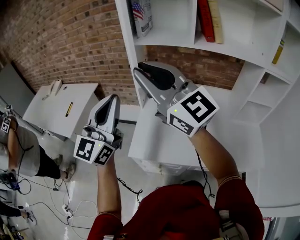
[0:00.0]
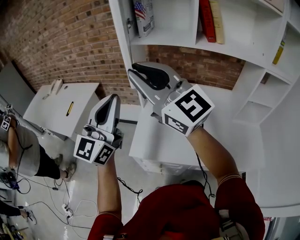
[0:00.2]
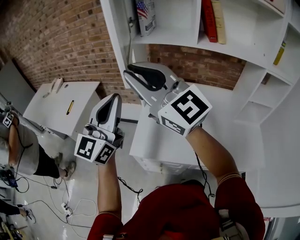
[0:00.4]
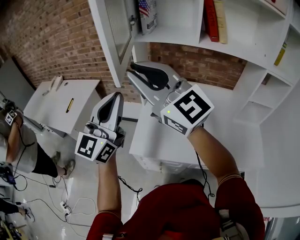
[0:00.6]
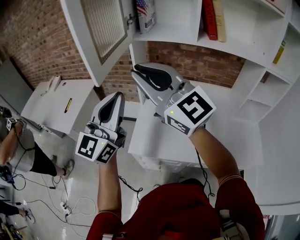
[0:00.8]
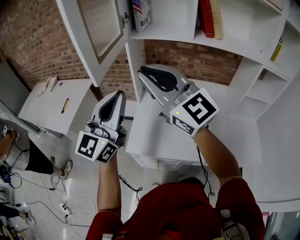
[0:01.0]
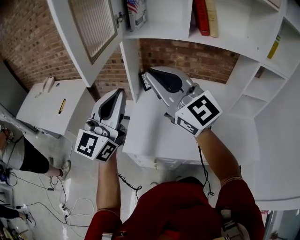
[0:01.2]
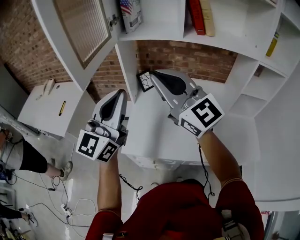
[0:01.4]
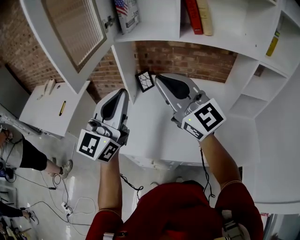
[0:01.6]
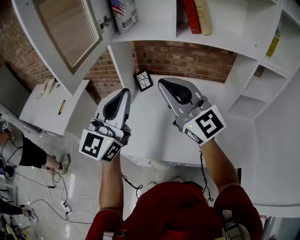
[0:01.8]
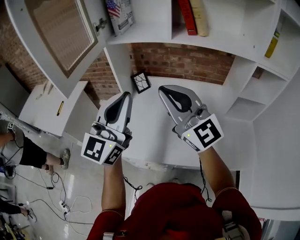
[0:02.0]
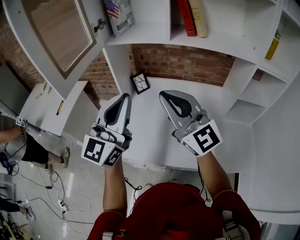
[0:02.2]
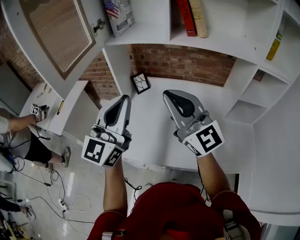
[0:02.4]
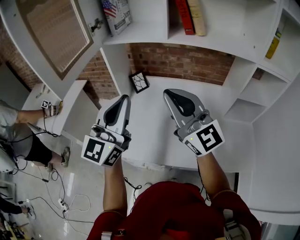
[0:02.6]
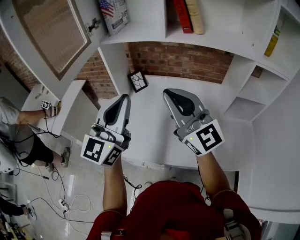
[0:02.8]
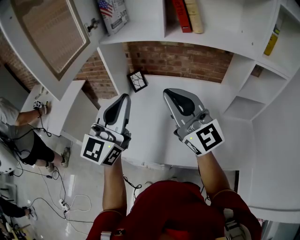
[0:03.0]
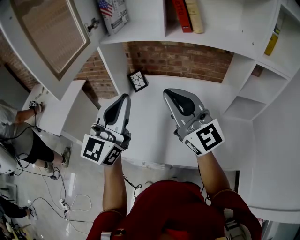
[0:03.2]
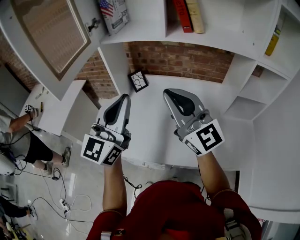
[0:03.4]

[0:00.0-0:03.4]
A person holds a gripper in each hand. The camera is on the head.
0:00.0 to 0:01.6: The left gripper travels to the right by approximately 10 cm. Meanwhile the right gripper is displaced to the right and downward by some 10 cm.
0:01.6 to 0:03.4: The two grippers go roughly 5 cm to the right.

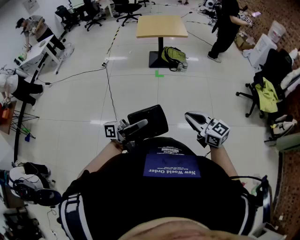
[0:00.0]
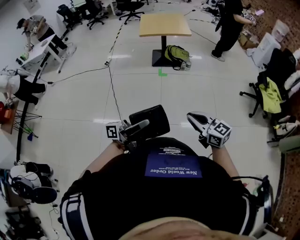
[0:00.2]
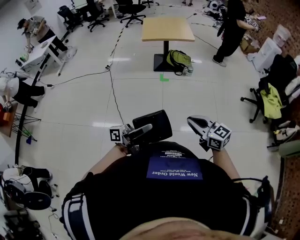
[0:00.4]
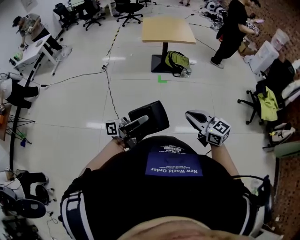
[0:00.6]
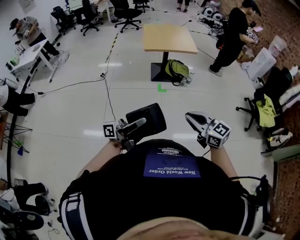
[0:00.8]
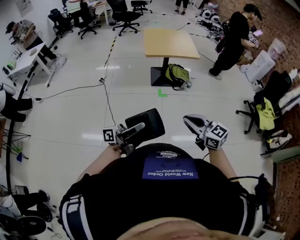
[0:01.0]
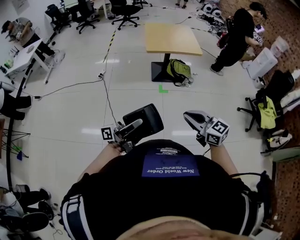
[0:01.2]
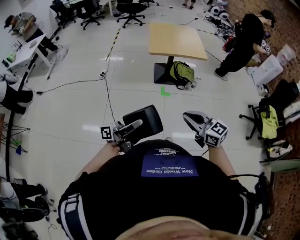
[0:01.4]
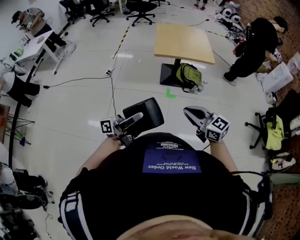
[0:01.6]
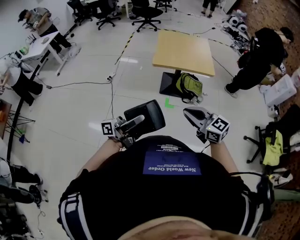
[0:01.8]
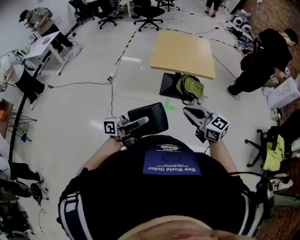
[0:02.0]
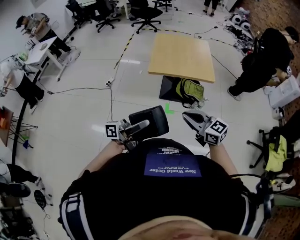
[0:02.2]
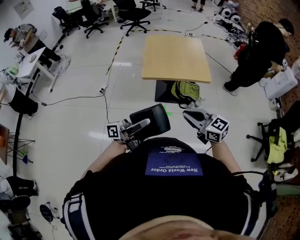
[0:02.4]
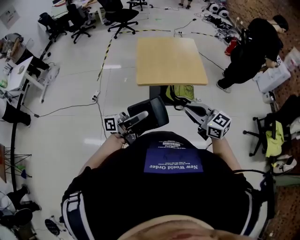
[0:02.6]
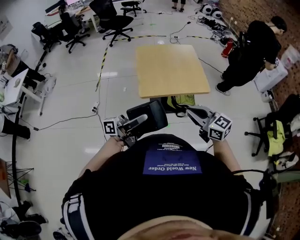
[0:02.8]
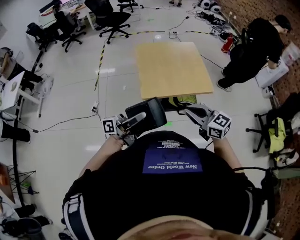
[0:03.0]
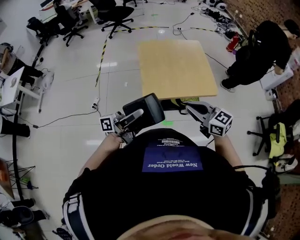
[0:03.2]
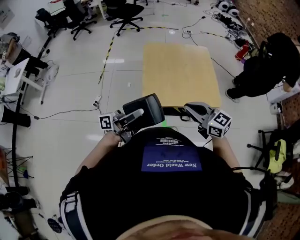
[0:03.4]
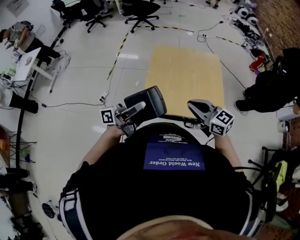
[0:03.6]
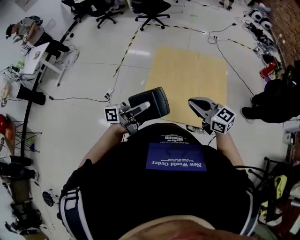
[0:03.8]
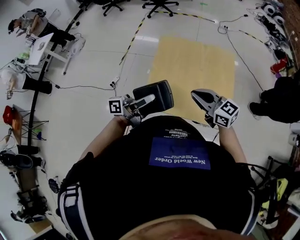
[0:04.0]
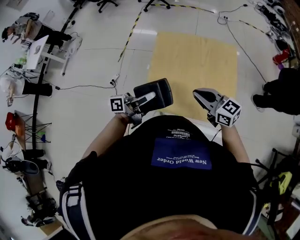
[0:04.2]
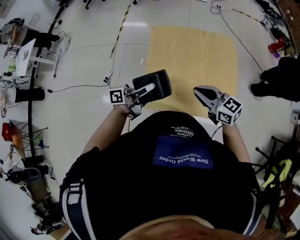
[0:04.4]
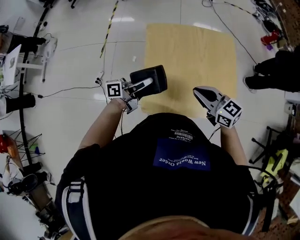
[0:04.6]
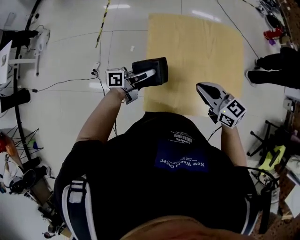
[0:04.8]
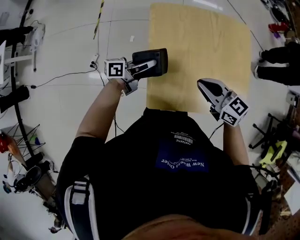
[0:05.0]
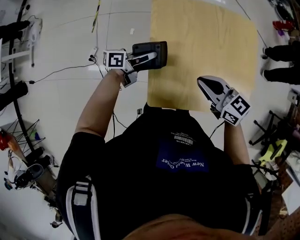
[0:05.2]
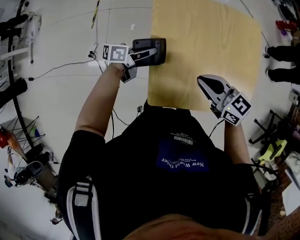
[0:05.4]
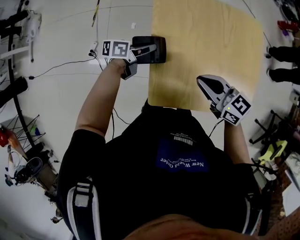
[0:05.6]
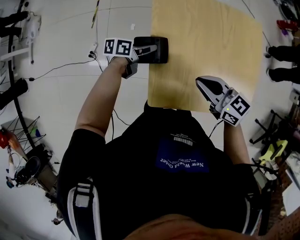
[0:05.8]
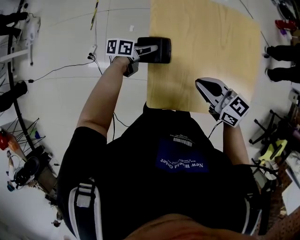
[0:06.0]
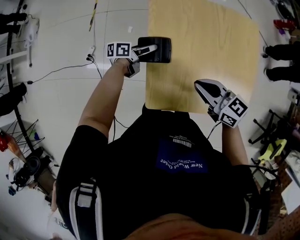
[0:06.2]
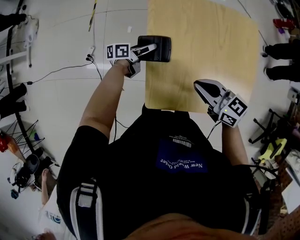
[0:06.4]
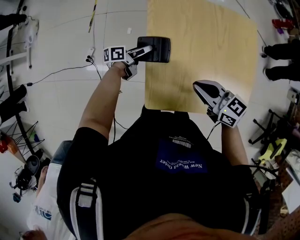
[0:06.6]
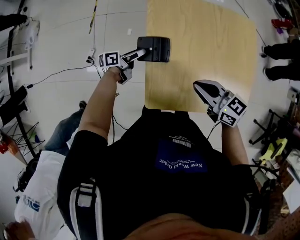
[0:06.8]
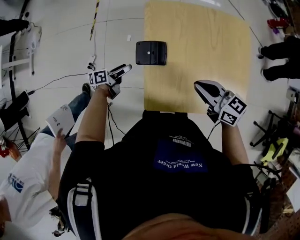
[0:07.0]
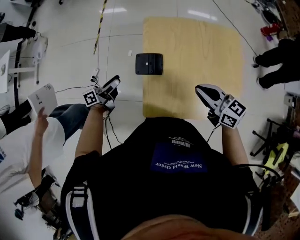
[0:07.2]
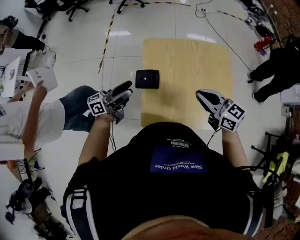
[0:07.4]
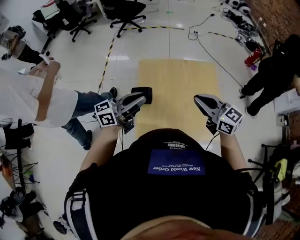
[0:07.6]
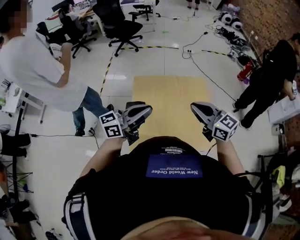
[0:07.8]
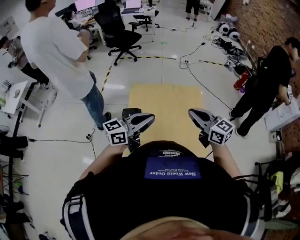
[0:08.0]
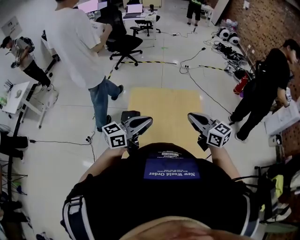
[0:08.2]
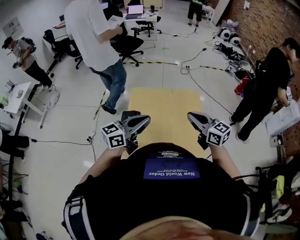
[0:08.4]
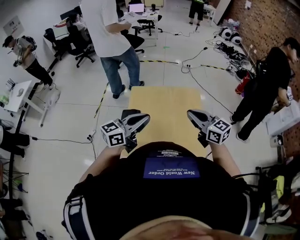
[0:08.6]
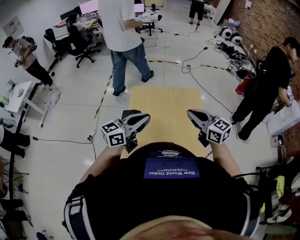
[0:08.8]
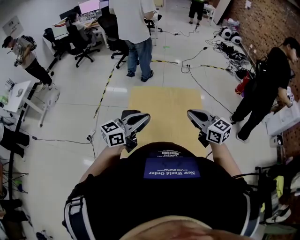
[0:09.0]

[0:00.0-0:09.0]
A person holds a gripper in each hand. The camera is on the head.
0:00.0 to 0:01.6: The pair of grippers is taken forward and to the left, approximately 50 cm.
0:01.6 to 0:03.0: The pair of grippers is taken forward, approximately 40 cm.
0:03.0 to 0:04.4: Both grippers move forward, roughly 35 cm. The left gripper turns by about 30 degrees.
0:04.4 to 0:06.0: The right gripper changes place by approximately 15 cm, while the left gripper is displaced downward by approximately 25 cm, tips its fingers downward by roughly 40 degrees, and opens.
0:06.0 to 0:07.6: The left gripper goes approximately 35 cm upward, tips its fingers upward by roughly 40 degrees, and closes its fingers. Meanwhile the right gripper heads upward, covering about 20 cm, and rotates about 20 degrees.
0:07.6 to 0:09.0: The left gripper heads to the right and backward, covering about 15 cm, while the right gripper is displaced to the right by some 10 cm.

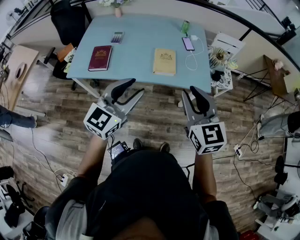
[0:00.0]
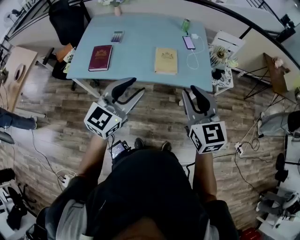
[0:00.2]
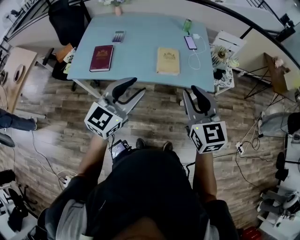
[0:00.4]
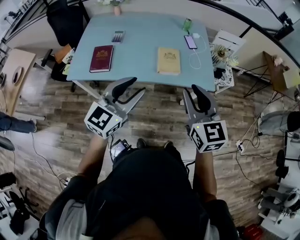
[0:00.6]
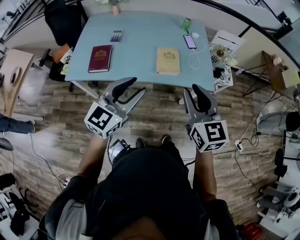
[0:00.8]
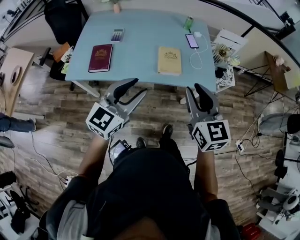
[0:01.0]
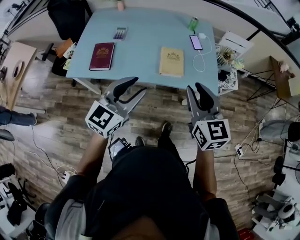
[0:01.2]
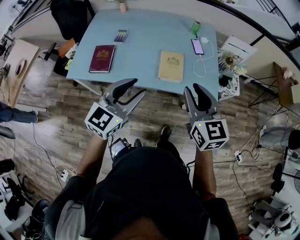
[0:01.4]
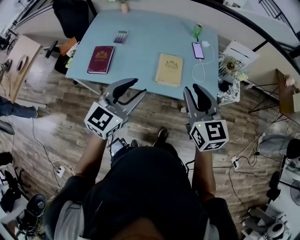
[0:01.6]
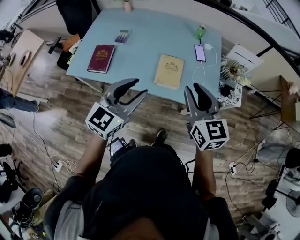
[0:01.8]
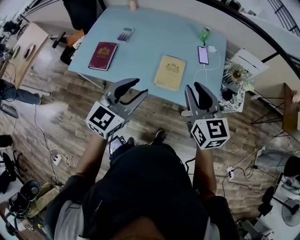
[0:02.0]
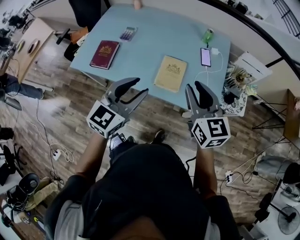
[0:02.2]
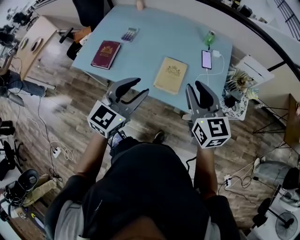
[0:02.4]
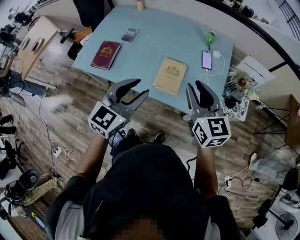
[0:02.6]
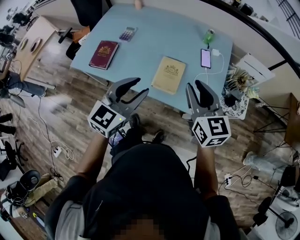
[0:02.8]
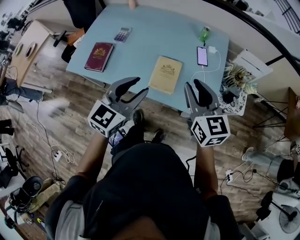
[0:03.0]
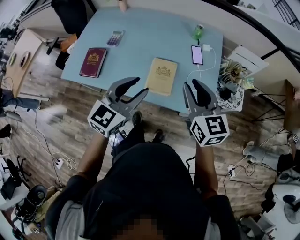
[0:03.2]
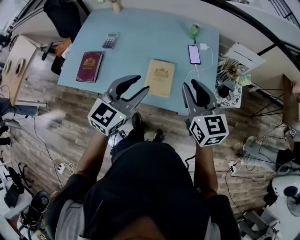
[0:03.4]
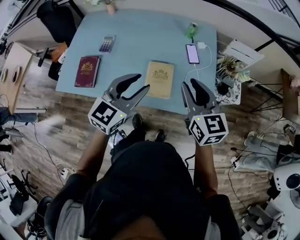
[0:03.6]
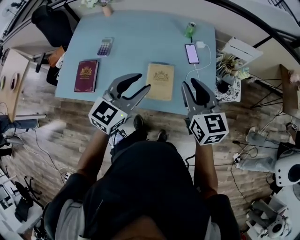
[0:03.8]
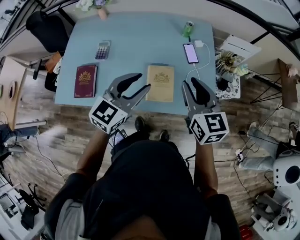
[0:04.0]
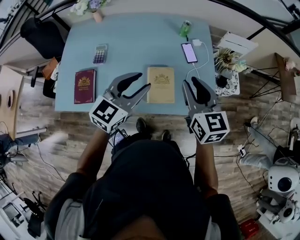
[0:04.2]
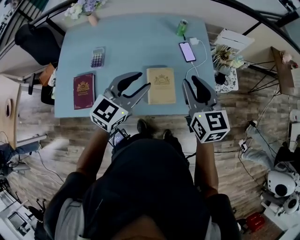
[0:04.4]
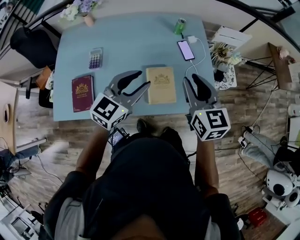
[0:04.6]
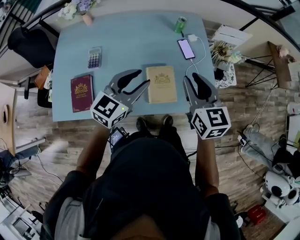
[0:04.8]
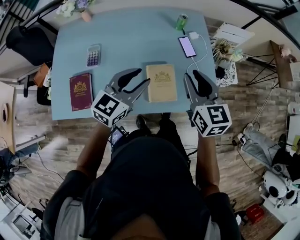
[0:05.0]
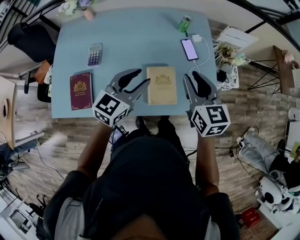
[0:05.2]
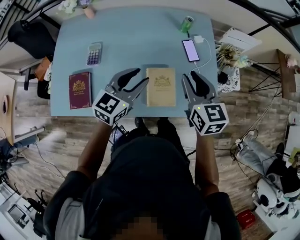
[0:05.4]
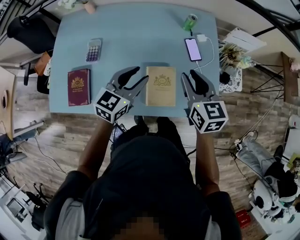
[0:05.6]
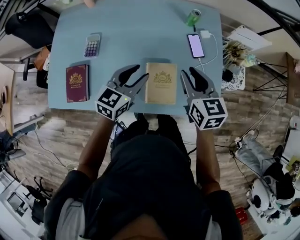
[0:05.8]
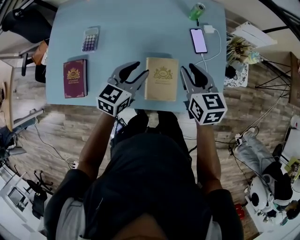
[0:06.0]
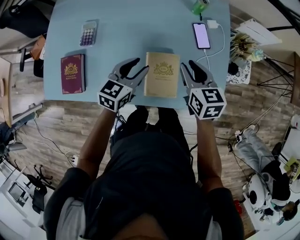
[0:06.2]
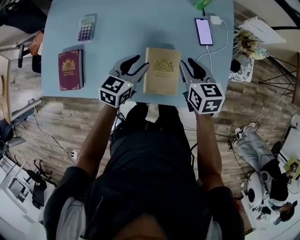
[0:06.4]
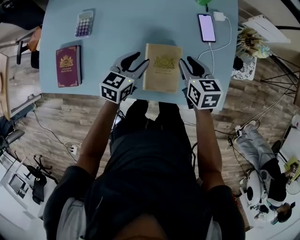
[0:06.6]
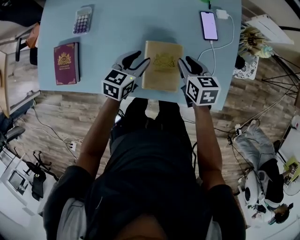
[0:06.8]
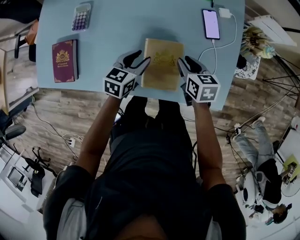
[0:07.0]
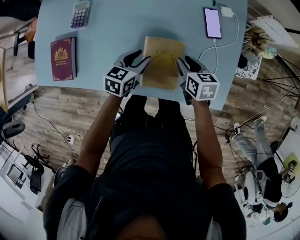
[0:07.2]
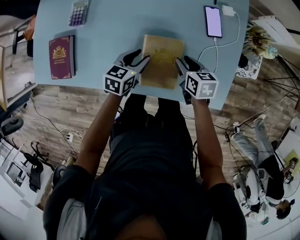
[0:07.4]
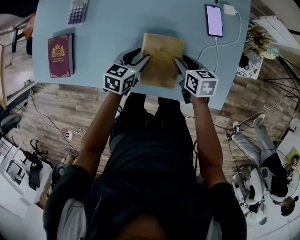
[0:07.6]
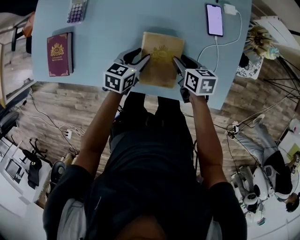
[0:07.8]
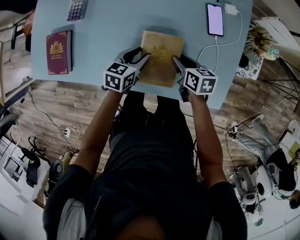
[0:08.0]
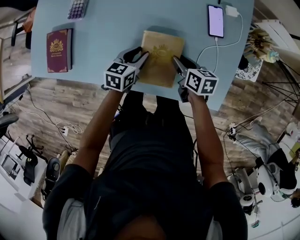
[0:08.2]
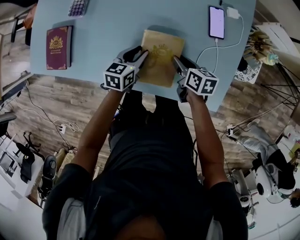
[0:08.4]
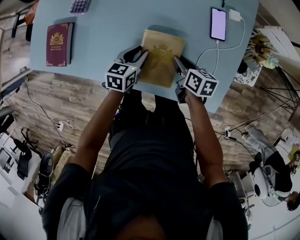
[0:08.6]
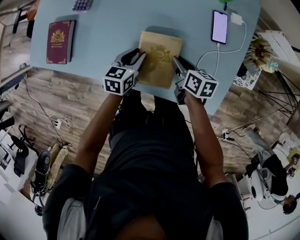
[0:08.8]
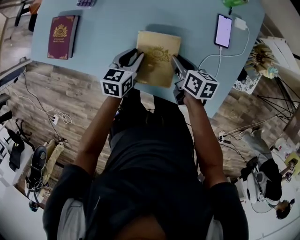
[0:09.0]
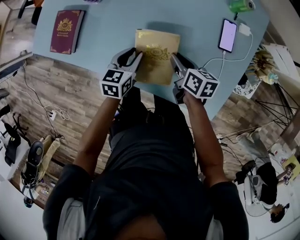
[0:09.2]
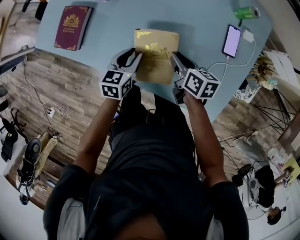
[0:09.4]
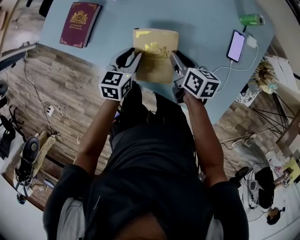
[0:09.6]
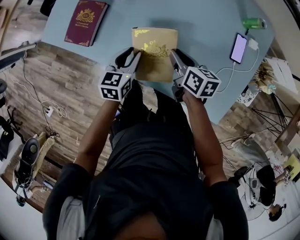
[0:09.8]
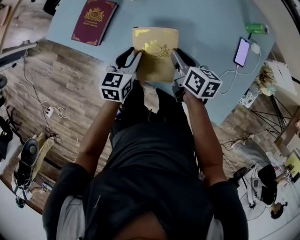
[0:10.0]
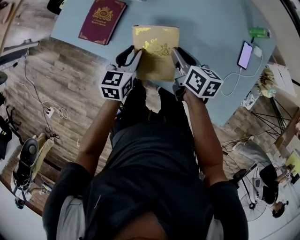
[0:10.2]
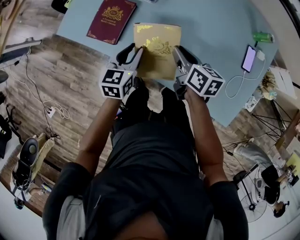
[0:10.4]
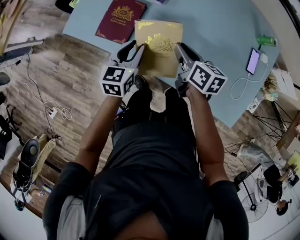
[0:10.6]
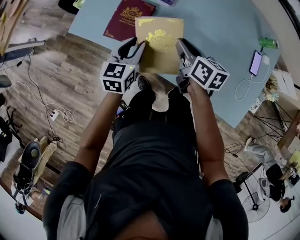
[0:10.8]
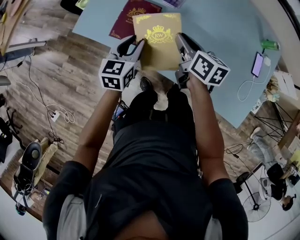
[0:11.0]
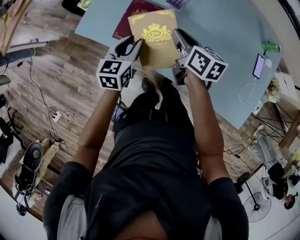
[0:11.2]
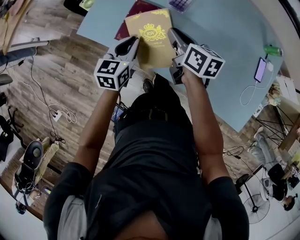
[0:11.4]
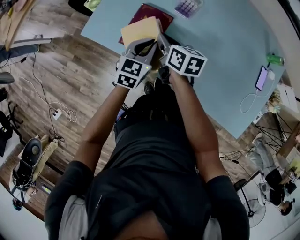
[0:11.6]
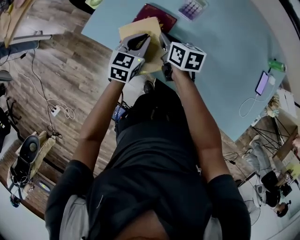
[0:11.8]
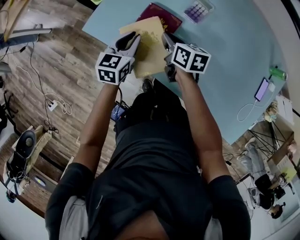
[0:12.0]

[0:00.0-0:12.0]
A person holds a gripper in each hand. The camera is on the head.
0:00.0 to 0:01.6: Both grippers move forward, about 15 cm.
0:01.6 to 0:03.0: The left gripper travels to the right and forward by approximately 10 cm, while the right gripper heads forward and to the right, covering some 15 cm.
0:03.0 to 0:04.4: The left gripper shifts roughly 15 cm forward and to the left, and rotates about 20 degrees, while the right gripper moves forward and to the left, some 10 cm, and turns by approximately 20 degrees.
0:04.4 to 0:06.0: The two grippers go about 20 cm downward and forward. The left gripper changes its angle by some 20 degrees.
0:06.0 to 0:07.6: Both grippers travel together downward, about 20 cm. The left gripper swivels approximately 20 degrees; the right gripper swivels roughly 30 degrees.
0:07.6 to 0:09.0: The grippers move only a little.
0:09.0 to 0:10.4: Both grippers move to the left, approximately 25 cm.
0:10.4 to 0:12.0: The right gripper shifts about 25 cm to the left and forward. The left gripper swings left and right, about 20 cm each way, with 2 reversals, and closes up.
